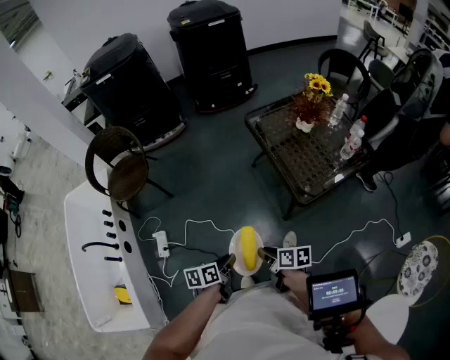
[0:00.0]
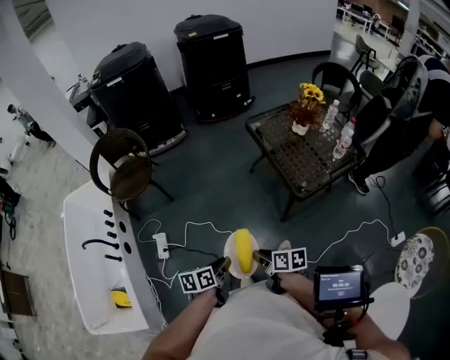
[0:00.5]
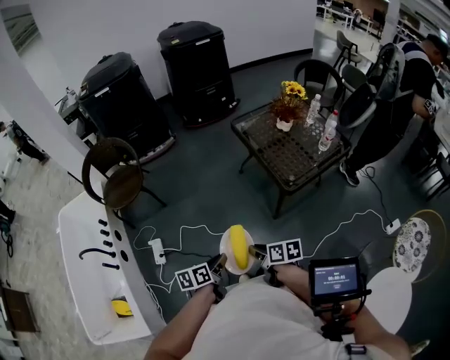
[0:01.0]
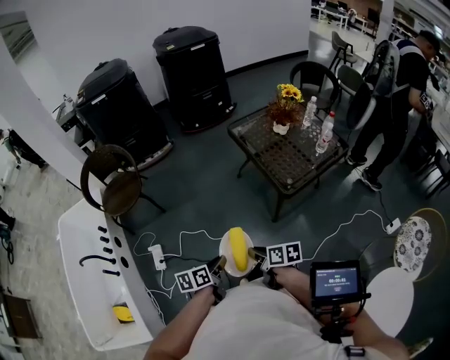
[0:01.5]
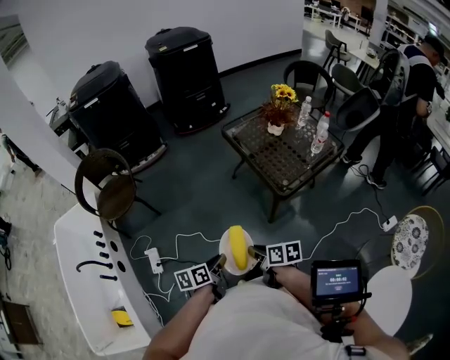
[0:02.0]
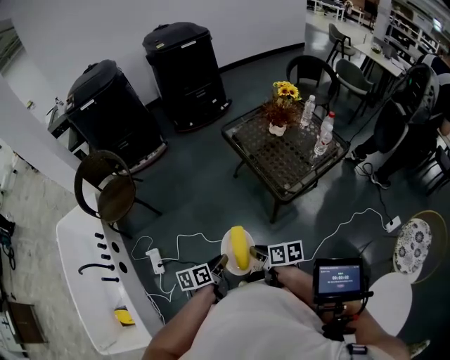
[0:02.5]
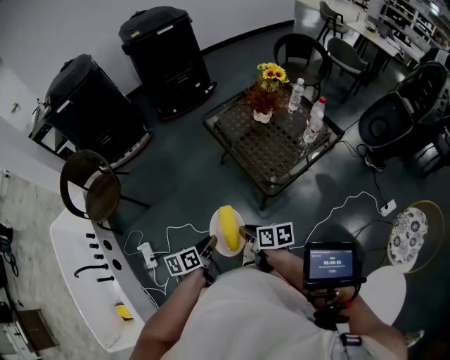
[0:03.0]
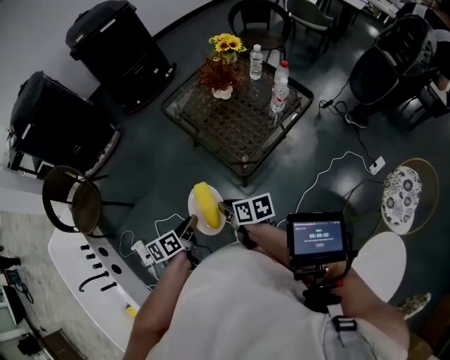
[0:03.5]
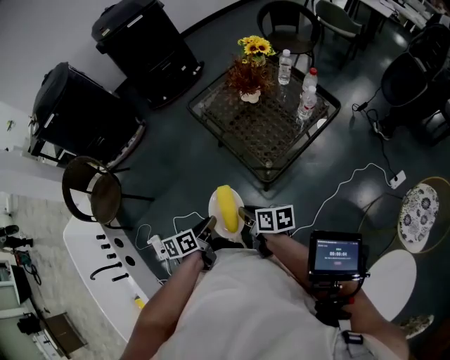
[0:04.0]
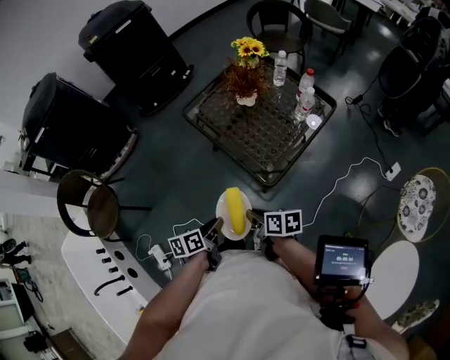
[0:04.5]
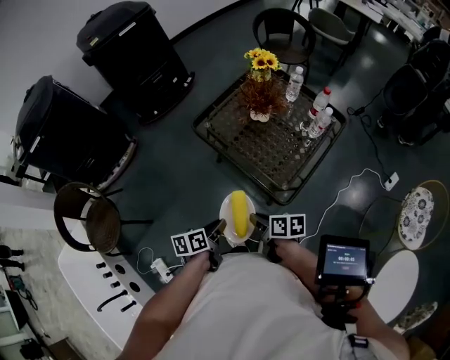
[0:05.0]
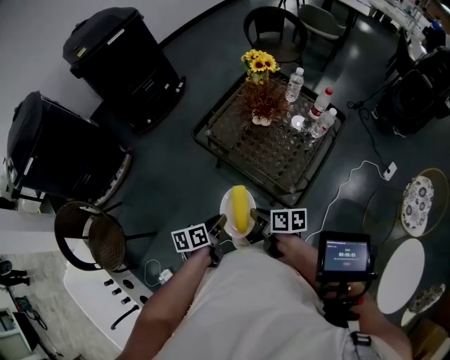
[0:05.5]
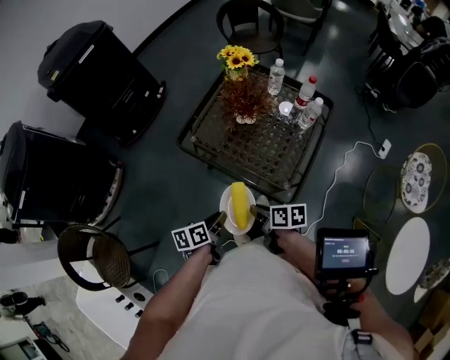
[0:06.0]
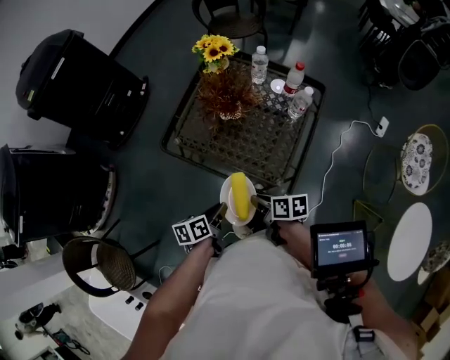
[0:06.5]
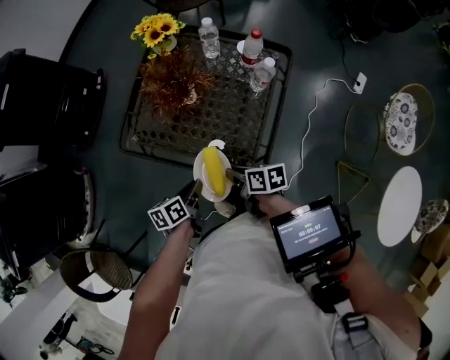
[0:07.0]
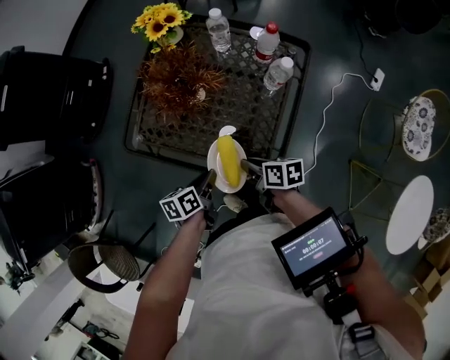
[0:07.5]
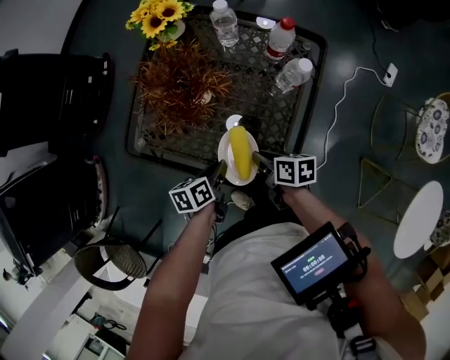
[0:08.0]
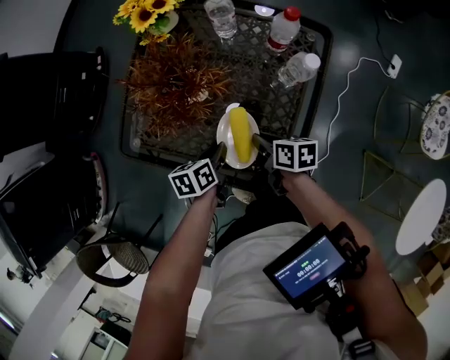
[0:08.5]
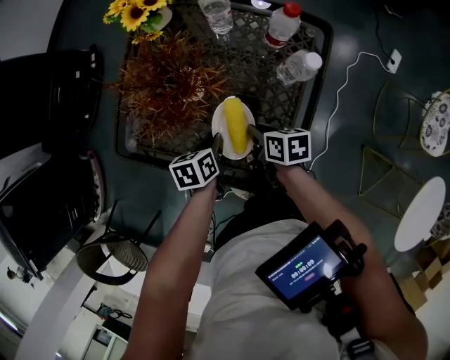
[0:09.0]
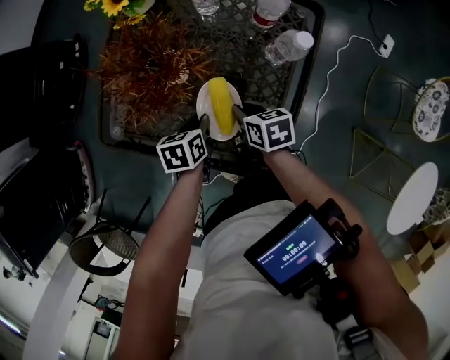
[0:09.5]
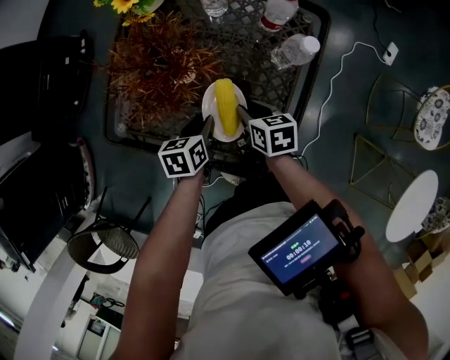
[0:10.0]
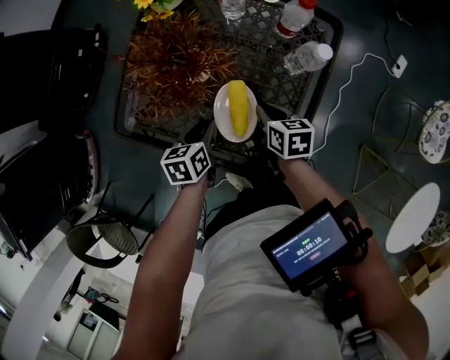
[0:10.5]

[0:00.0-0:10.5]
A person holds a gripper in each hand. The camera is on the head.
0:00.0 to 0:02.0: The left gripper is displaced backward by approximately 5 cm. The right gripper shifts roughly 10 cm backward and upward.
0:02.0 to 0:04.0: Both grippers travel together forward and to the right, about 20 cm.
0:04.0 to 0:06.5: The right gripper ends up roughly 20 cm from where it was, and turns by some 30 degrees, while the left gripper ends up approximately 25 cm from where it was, and turns by about 30 degrees.
0:06.5 to 0:08.5: Both grippers travel together forward, downward and to the right, about 25 cm.
0:08.5 to 0:10.5: There are only small adjustments of the grippers.

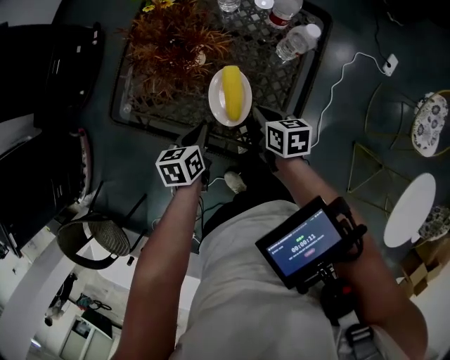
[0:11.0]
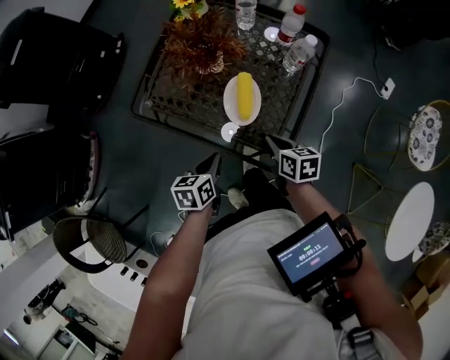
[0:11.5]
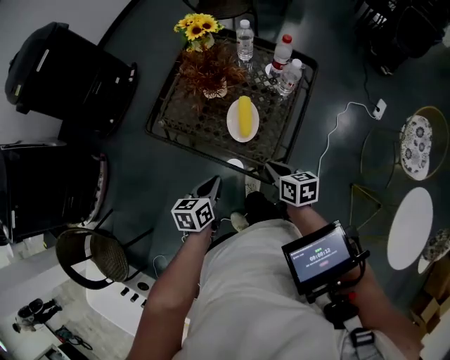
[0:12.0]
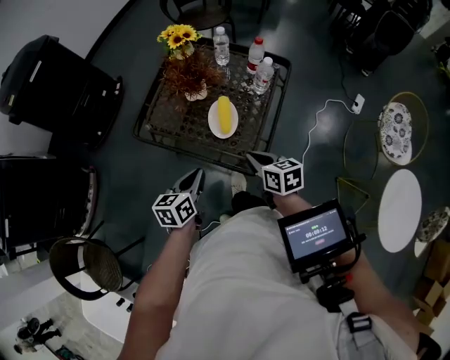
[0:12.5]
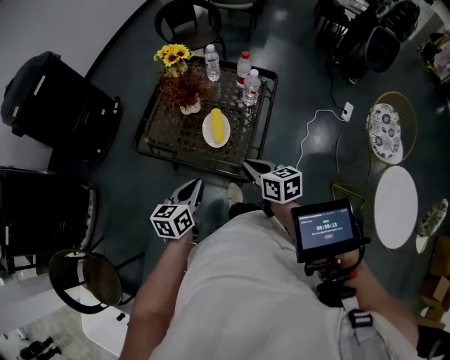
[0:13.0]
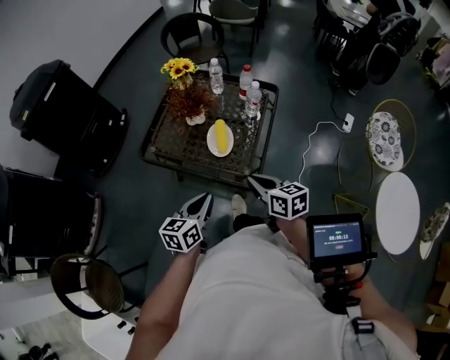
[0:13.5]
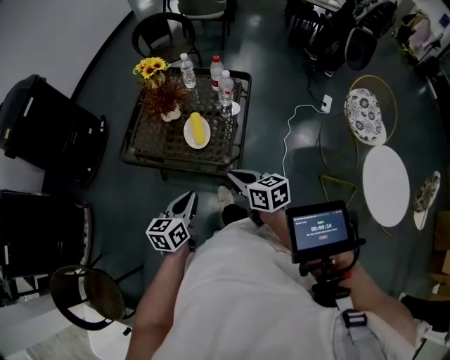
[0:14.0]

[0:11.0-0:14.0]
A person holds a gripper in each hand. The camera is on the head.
0:11.0 to 0:12.5: The grippers both shift upward and backward by approximately 20 cm. The left gripper changes its angle by approximately 20 degrees.
0:12.5 to 0:14.0: The left gripper is displaced backward by some 10 cm. Meanwhile the right gripper heads backward and upward, covering approximately 10 cm.

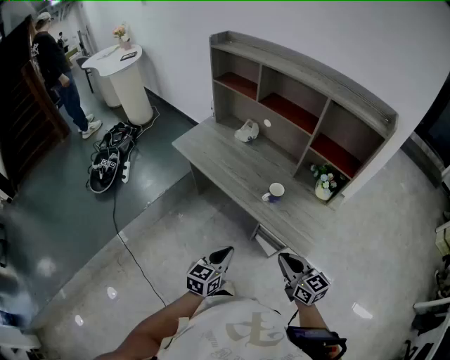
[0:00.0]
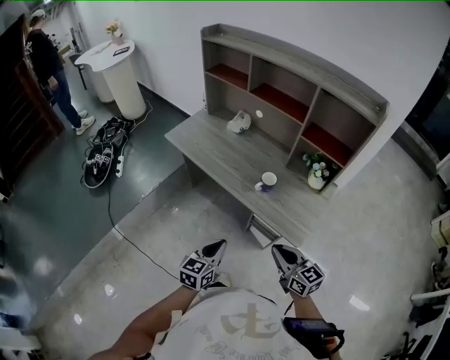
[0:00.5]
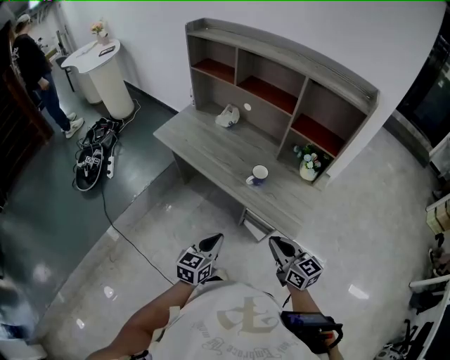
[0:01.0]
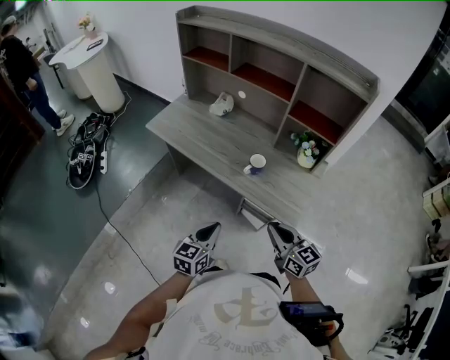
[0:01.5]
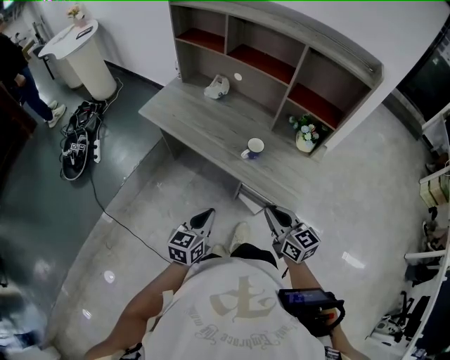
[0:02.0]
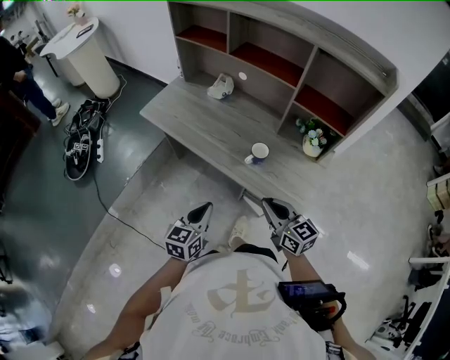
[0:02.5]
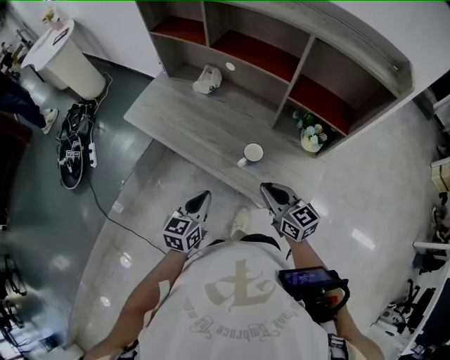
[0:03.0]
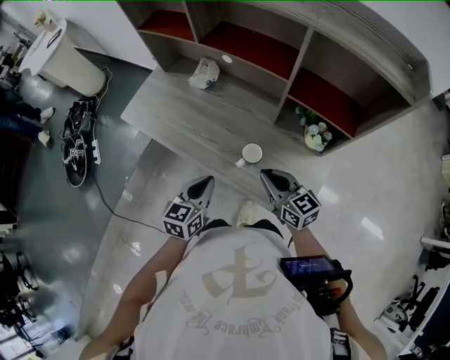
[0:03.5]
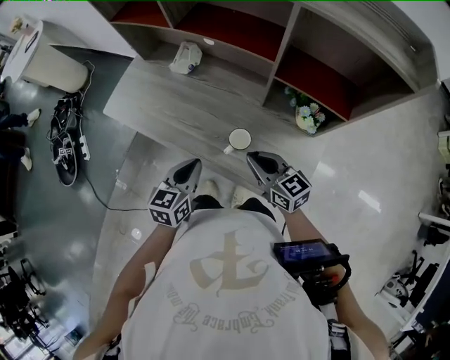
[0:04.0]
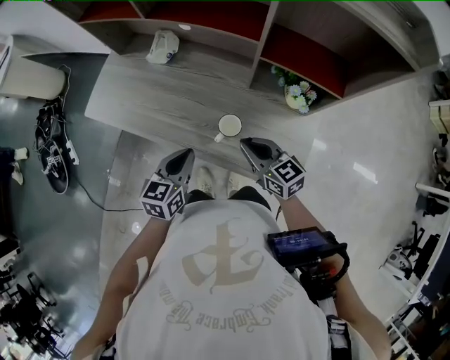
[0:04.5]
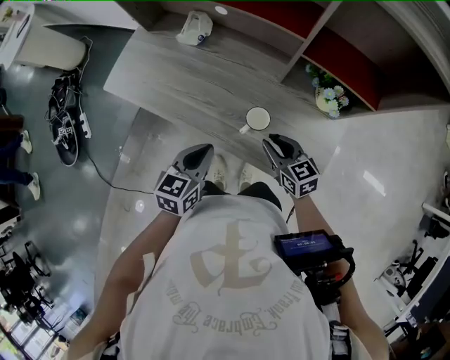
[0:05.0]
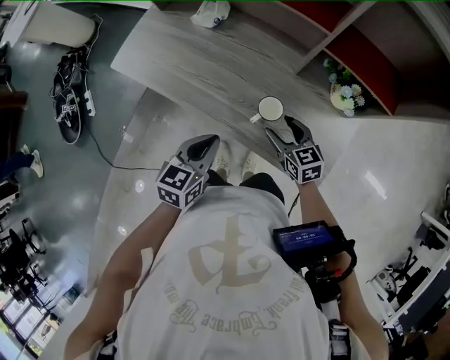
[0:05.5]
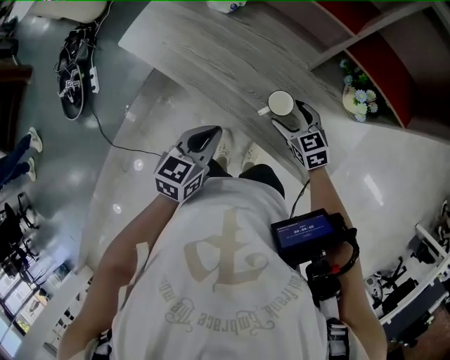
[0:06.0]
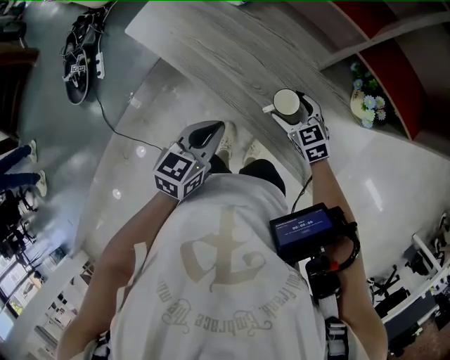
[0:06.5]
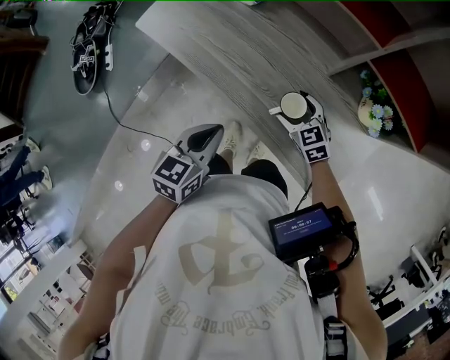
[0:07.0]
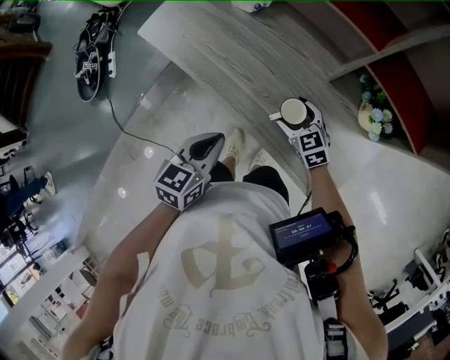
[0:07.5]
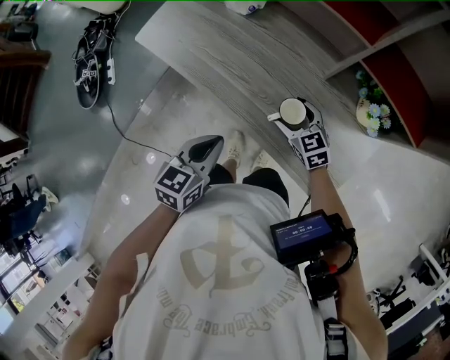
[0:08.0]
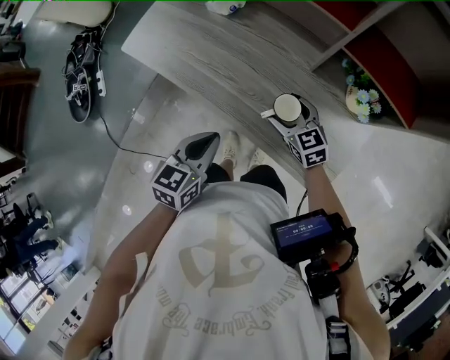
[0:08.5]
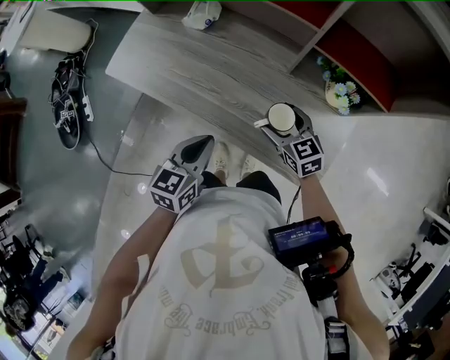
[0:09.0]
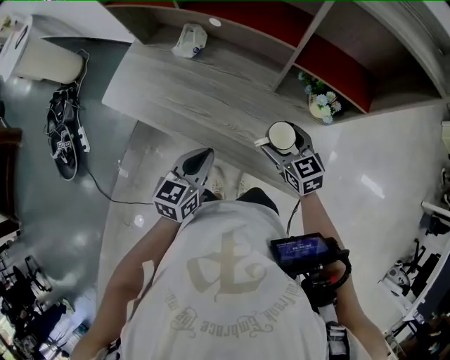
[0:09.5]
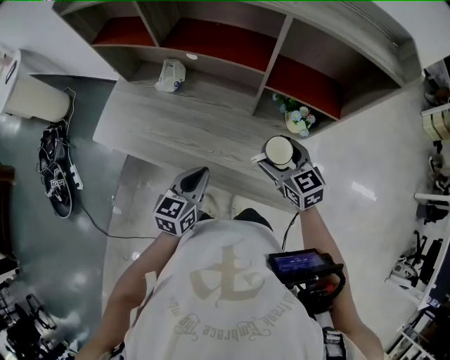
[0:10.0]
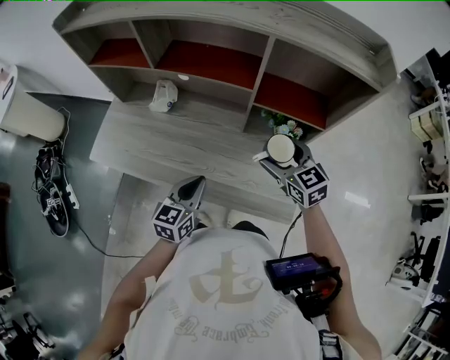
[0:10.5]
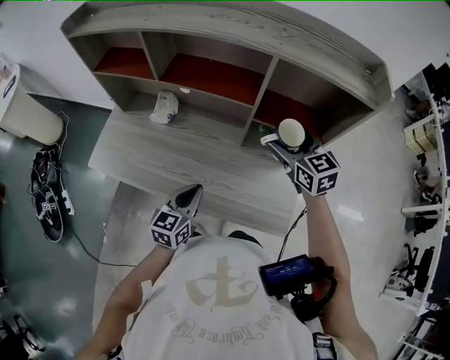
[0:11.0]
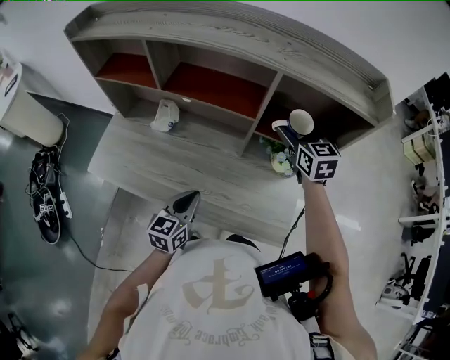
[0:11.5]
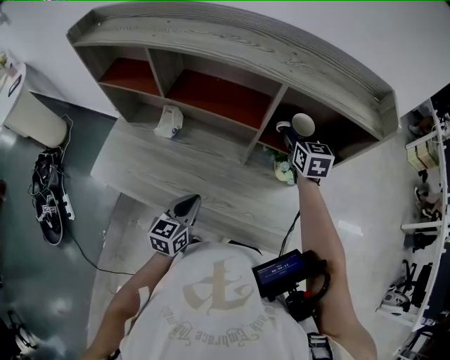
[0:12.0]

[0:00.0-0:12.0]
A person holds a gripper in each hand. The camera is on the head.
0:00.0 to 0:02.0: The grippers make only small movements.
0:02.0 to 0:04.0: Both grippers move forward, roughly 25 cm.
0:04.0 to 0:06.0: The right gripper travels downward by approximately 15 cm, swivels some 30 degrees, and opens its fingers; the left gripper heads downward, covering some 5 cm.
0:06.0 to 0:08.0: The grippers make only small movements.
0:08.0 to 0:10.0: The right gripper heads upward and to the right, covering some 20 cm, and turns by approximately 20 degrees. The left gripper travels forward and to the right by roughly 10 cm.
0:10.0 to 0:12.0: The right gripper goes about 25 cm forward and upward, and changes its angle by about 30 degrees; the left gripper goes some 5 cm forward.

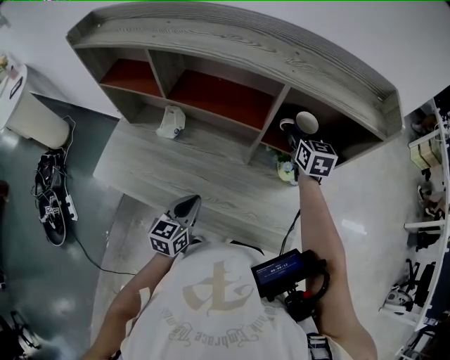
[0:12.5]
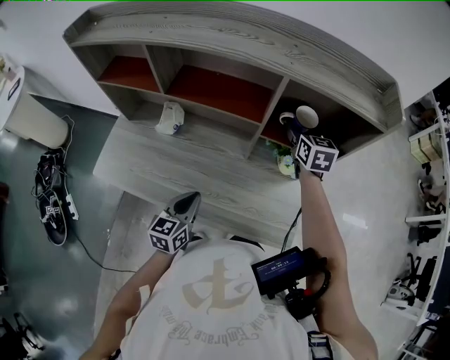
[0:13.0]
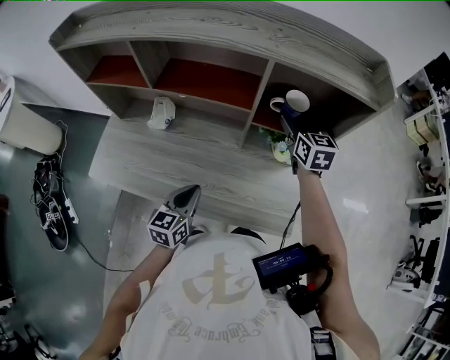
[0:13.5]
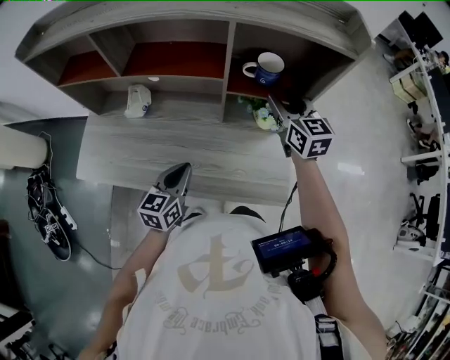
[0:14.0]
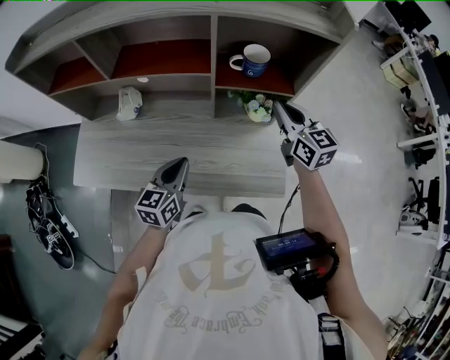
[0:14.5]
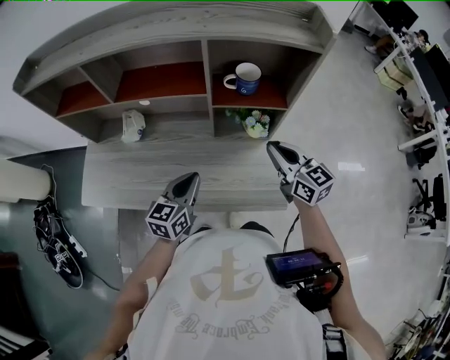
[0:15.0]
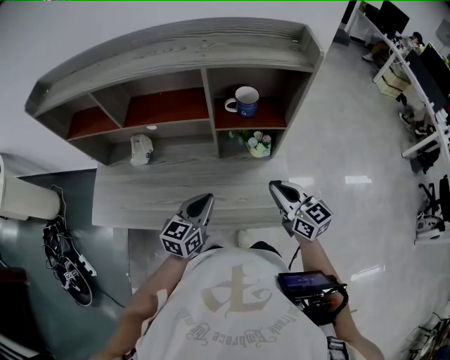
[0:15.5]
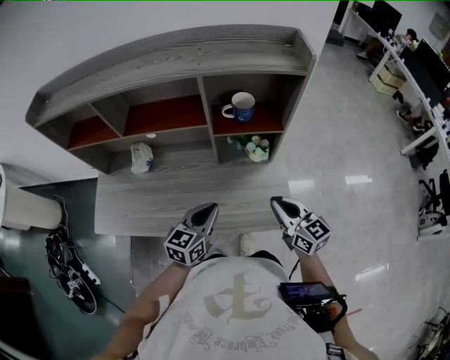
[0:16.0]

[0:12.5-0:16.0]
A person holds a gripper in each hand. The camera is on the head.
0:12.5 to 0:14.5: The right gripper goes about 15 cm backward, and closes up.
0:14.5 to 0:16.0: The right gripper is displaced backward by roughly 20 cm, while the left gripper heads to the right, covering roughly 5 cm.
